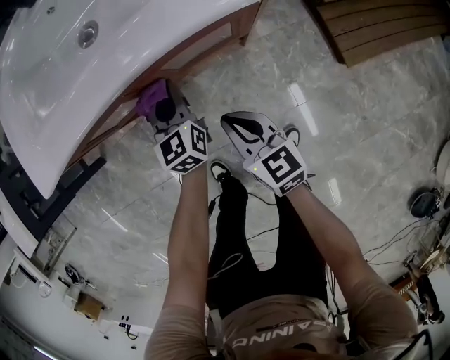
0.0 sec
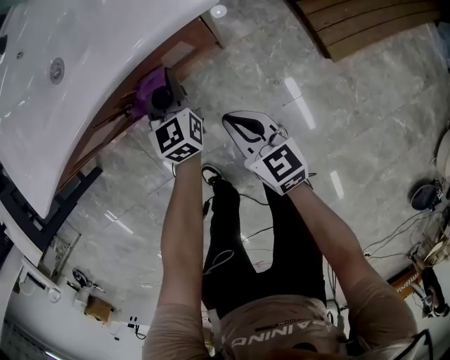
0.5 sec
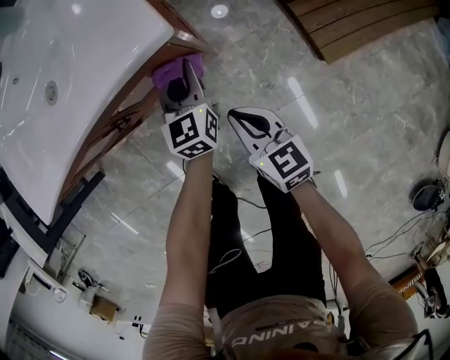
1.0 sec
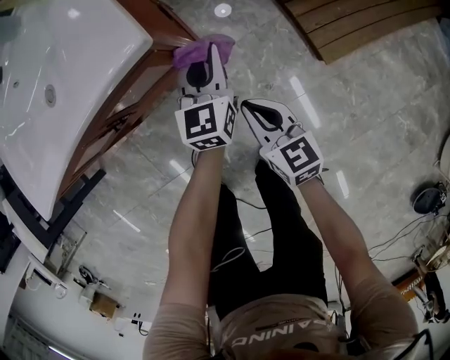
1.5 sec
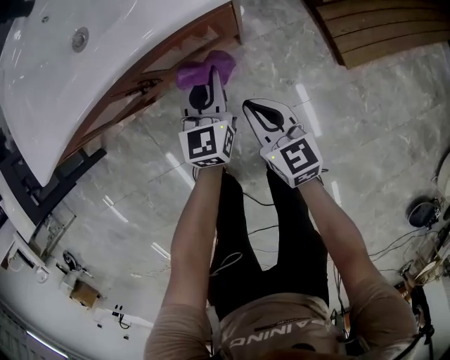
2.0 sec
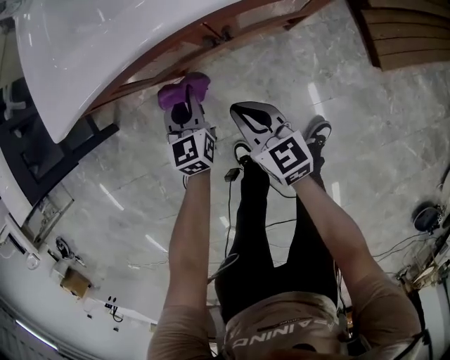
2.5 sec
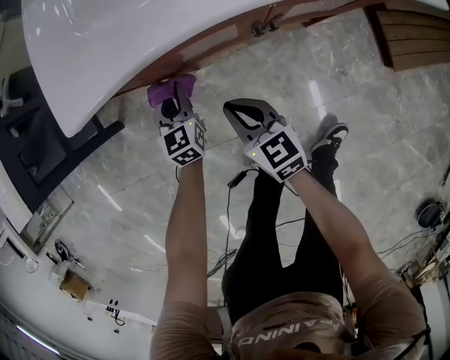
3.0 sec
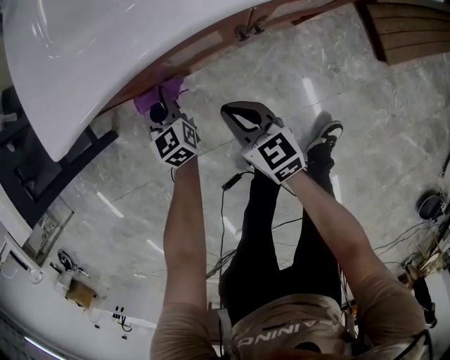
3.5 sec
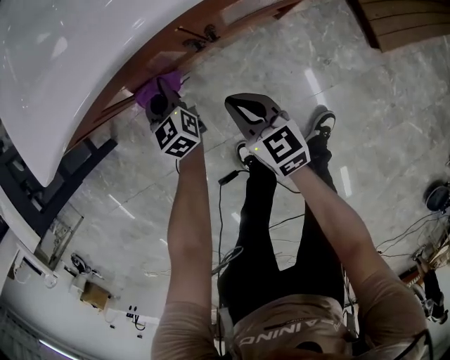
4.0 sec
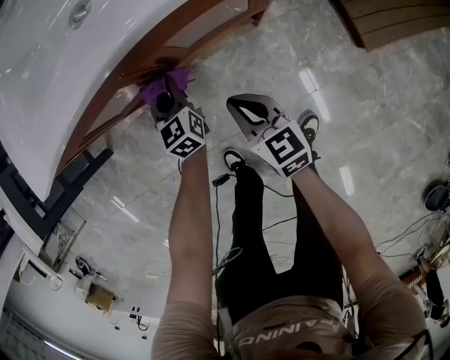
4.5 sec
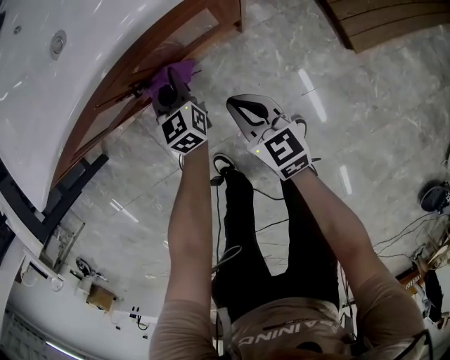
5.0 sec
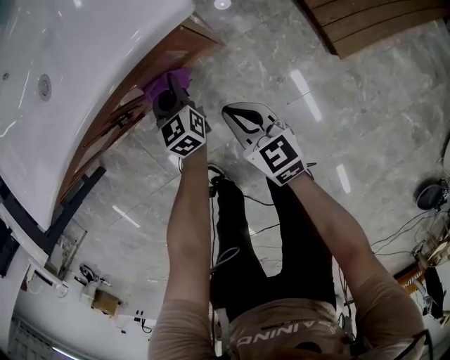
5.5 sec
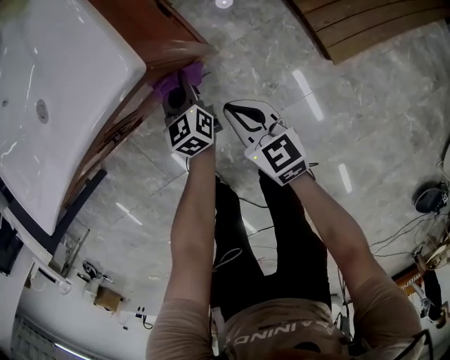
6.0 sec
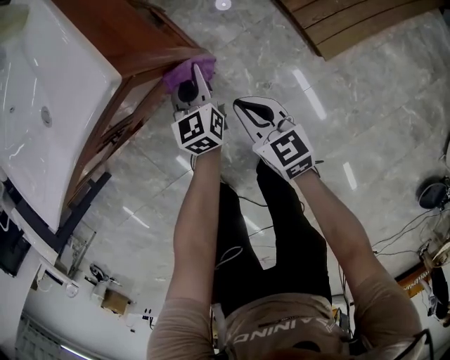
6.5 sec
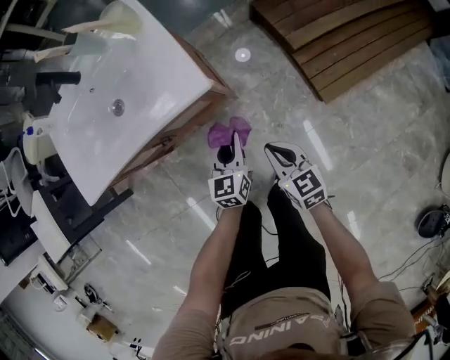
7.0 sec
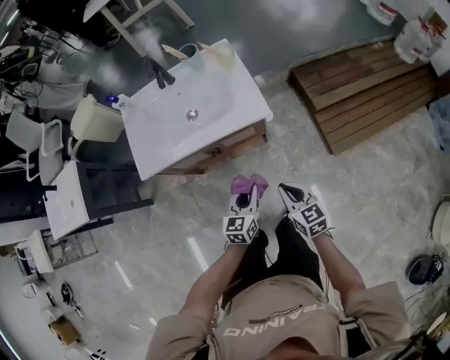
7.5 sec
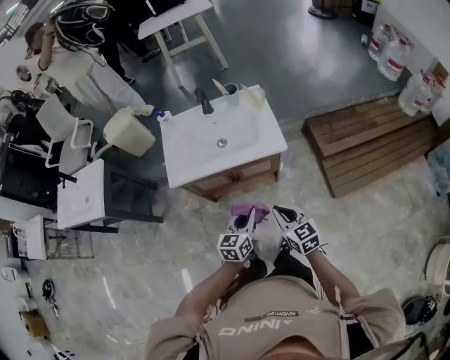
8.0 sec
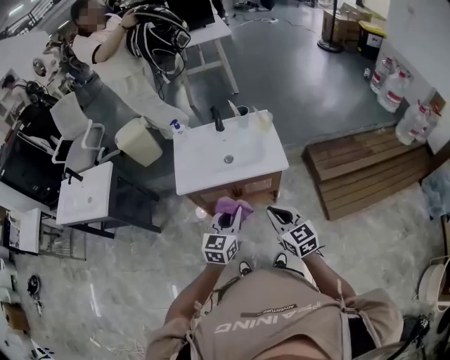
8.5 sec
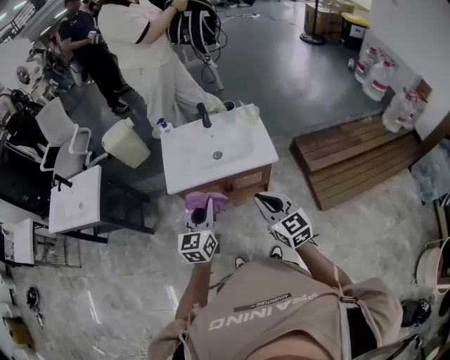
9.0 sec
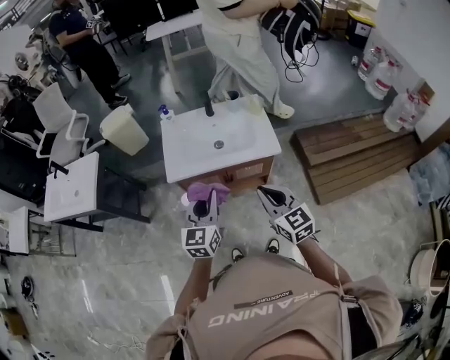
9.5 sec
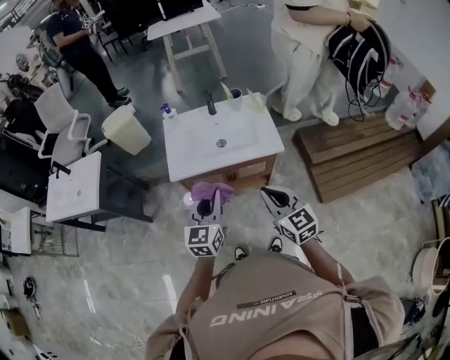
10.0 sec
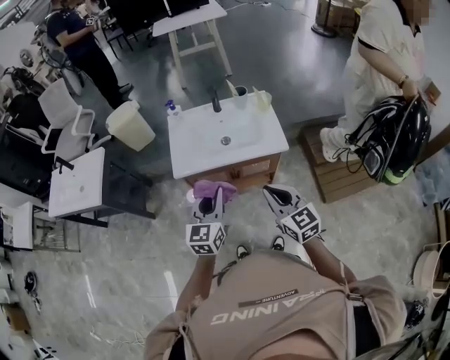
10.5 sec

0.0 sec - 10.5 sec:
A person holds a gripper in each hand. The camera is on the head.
0.0 sec - 2.0 sec: Both grippers move to the right, approximately 10 cm.
2.0 sec - 4.0 sec: Both grippers move to the left, approximately 30 cm. The left gripper turns by some 30 degrees.
4.0 sec - 6.5 sec: Both grippers move to the right, roughly 40 cm. The left gripper turns by about 20 degrees.
6.5 sec - 8.5 sec: The left gripper travels upward, to the left and backward by some 70 cm; the right gripper goes approximately 50 cm upward, and swivels about 30 degrees.
8.5 sec - 10.5 sec: The right gripper moves some 5 cm; the left gripper travels to the left by roughly 10 cm.

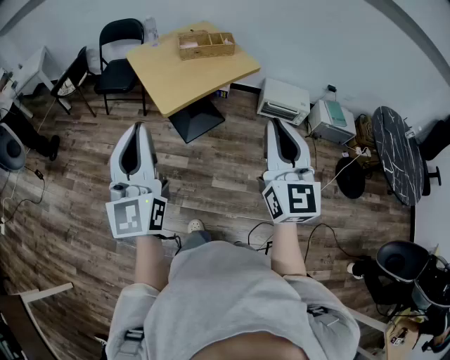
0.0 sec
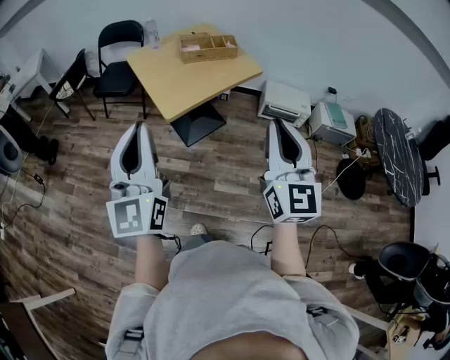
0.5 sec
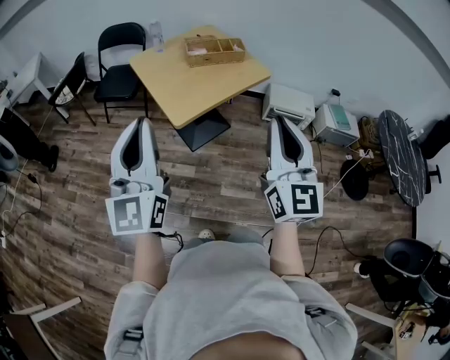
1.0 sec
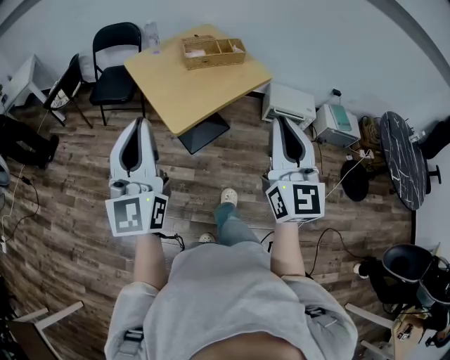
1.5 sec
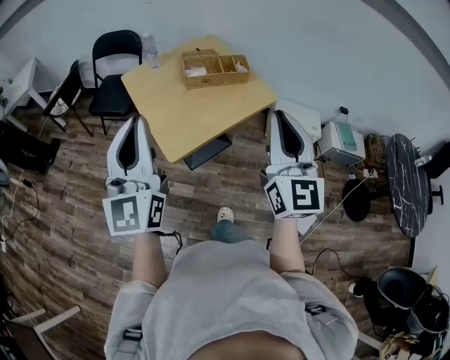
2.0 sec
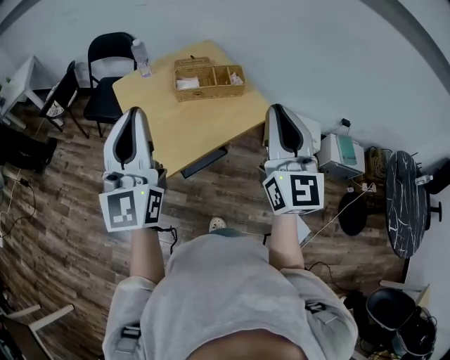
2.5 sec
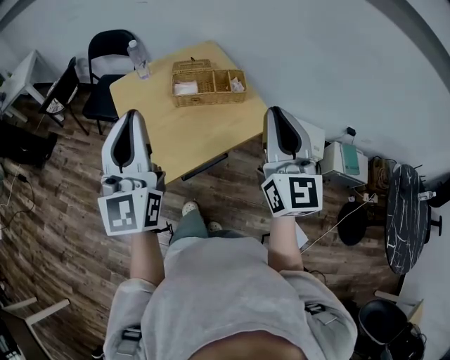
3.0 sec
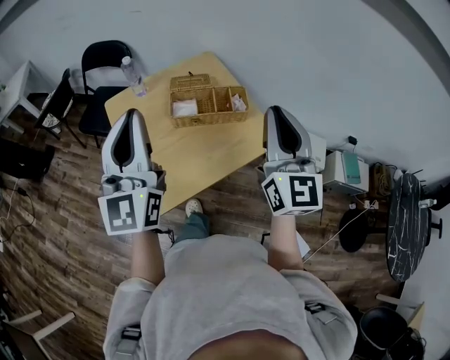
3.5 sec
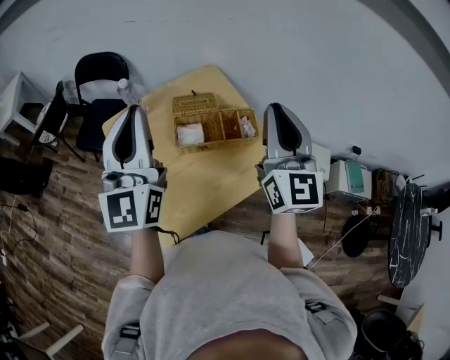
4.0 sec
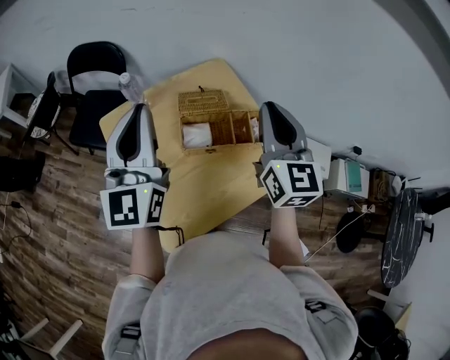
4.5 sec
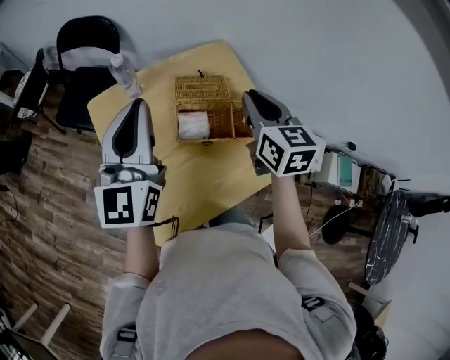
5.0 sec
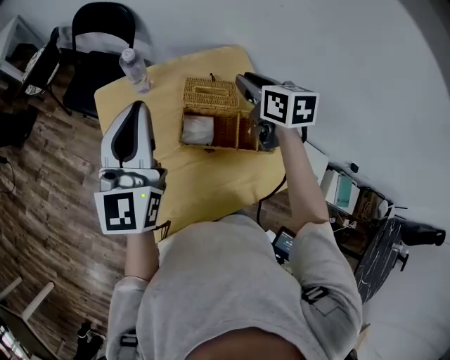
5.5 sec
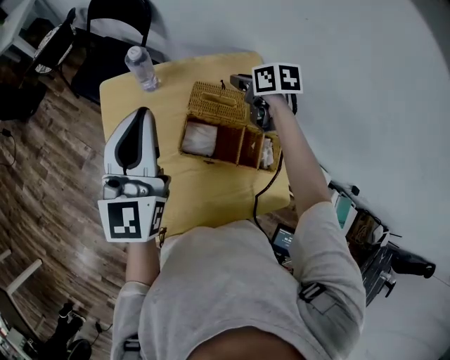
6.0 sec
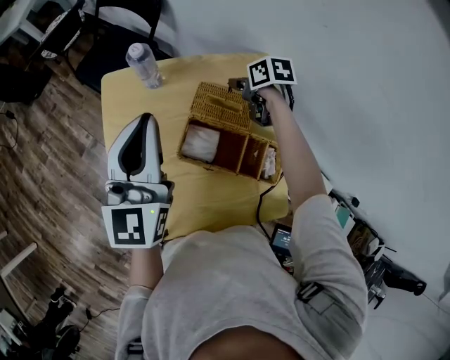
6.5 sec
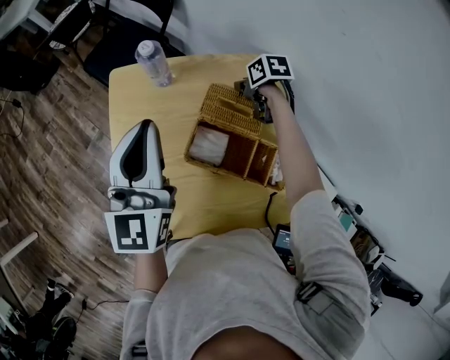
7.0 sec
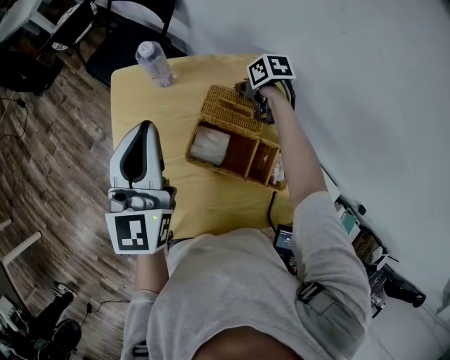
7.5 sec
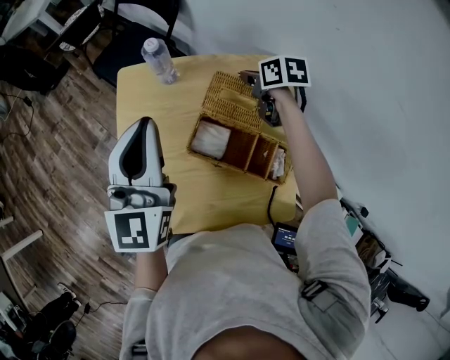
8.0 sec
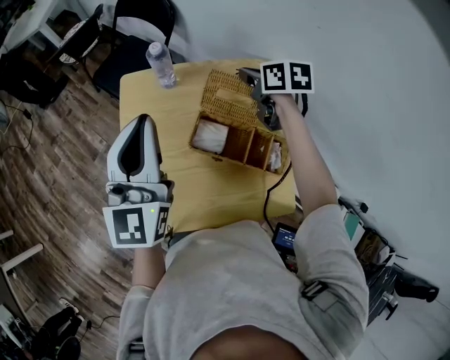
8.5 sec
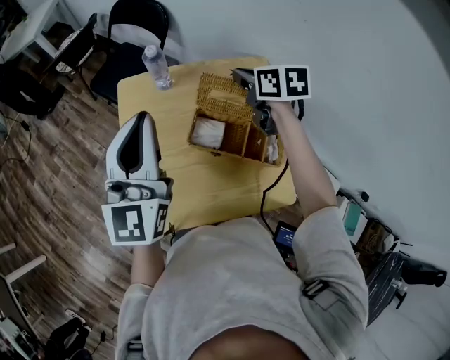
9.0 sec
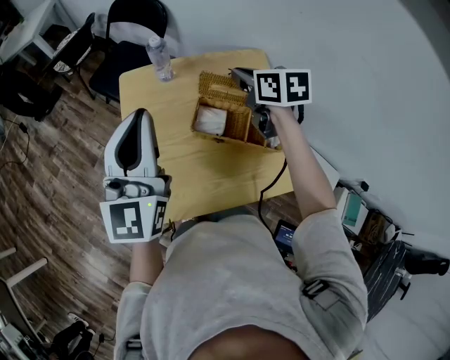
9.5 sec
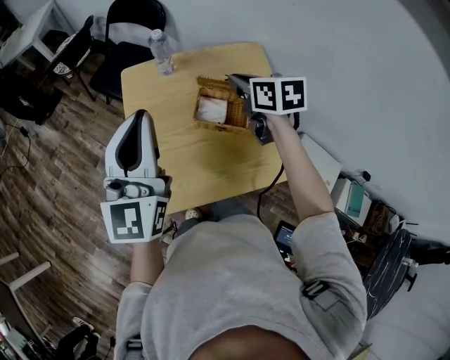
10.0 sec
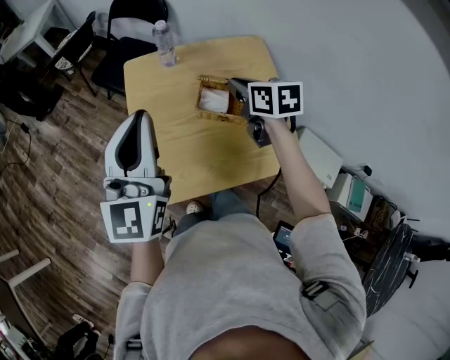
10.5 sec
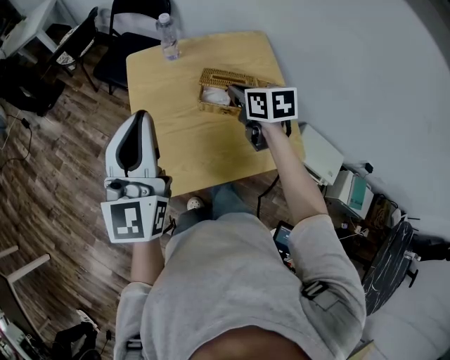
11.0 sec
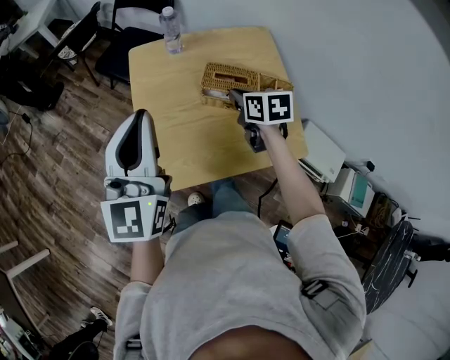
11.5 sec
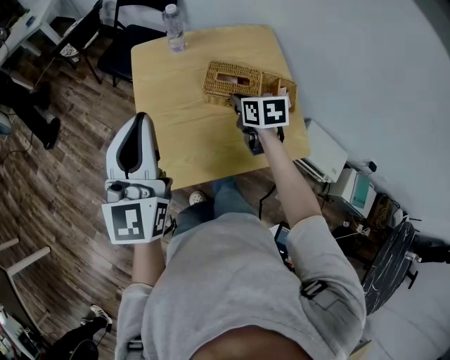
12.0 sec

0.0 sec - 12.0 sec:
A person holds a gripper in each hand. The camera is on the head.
0.0 sec - 2.0 sec: The two grippers go roughly 25 cm forward.
2.0 sec - 4.0 sec: Both grippers move forward, roughly 35 cm.
4.0 sec - 6.0 sec: The left gripper changes place by some 15 cm, while the right gripper changes place by some 50 cm, and tips its fingers downward by some 60 degrees.
6.0 sec - 8.0 sec: The right gripper reaches some 10 cm downward, then returns.
8.0 sec - 10.0 sec: The left gripper is displaced backward, to the left and upward by about 15 cm. Meanwhile the right gripper travels backward, upward and to the left by about 25 cm, and changes its angle by about 20 degrees.
10.0 sec - 12.0 sec: The right gripper heads downward and backward, covering some 15 cm. The left gripper travels backward by approximately 5 cm.

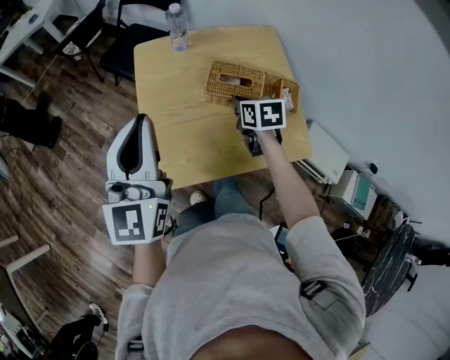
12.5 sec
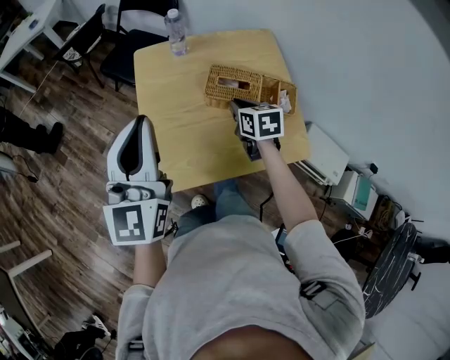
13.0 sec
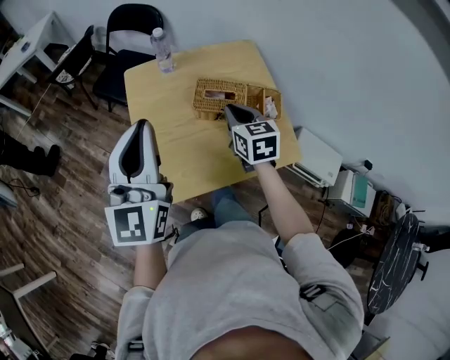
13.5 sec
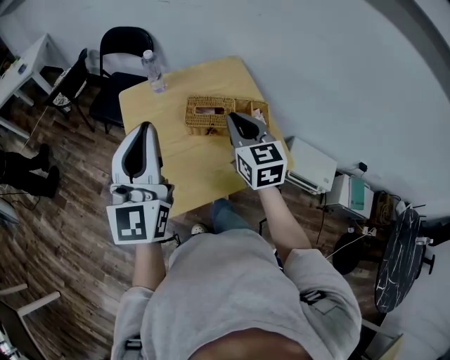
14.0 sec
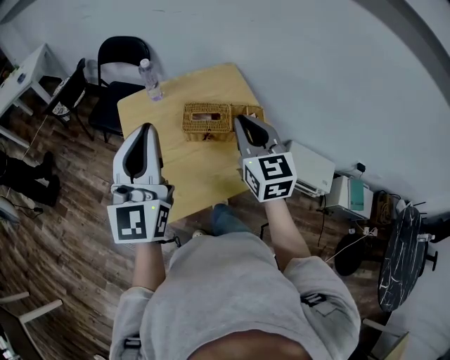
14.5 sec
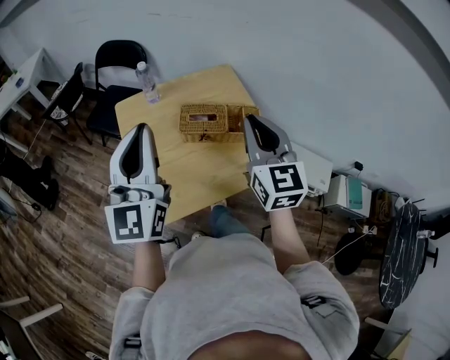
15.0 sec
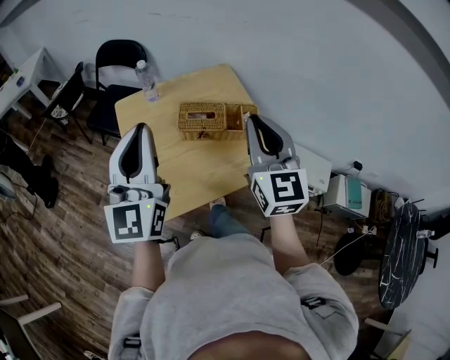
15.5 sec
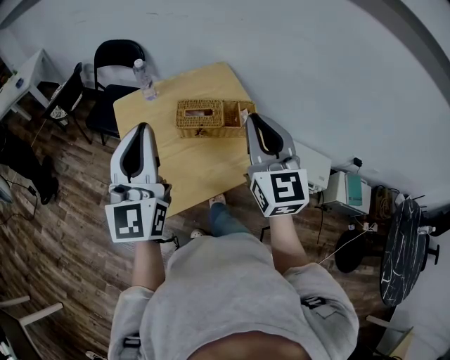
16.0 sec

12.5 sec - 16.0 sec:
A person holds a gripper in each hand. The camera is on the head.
12.5 sec - 14.5 sec: The left gripper moves upward and to the right, approximately 10 cm, while the right gripper travels upward by some 20 cm, and tips its fingers upward by roughly 40 degrees.
14.5 sec - 16.0 sec: The right gripper shifts roughly 10 cm backward and upward.

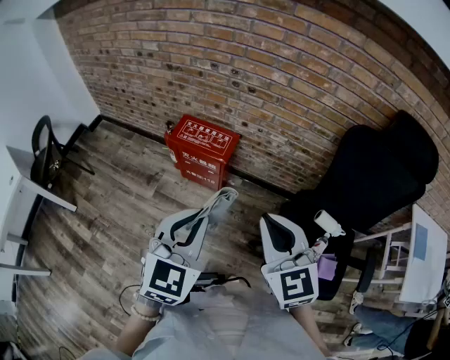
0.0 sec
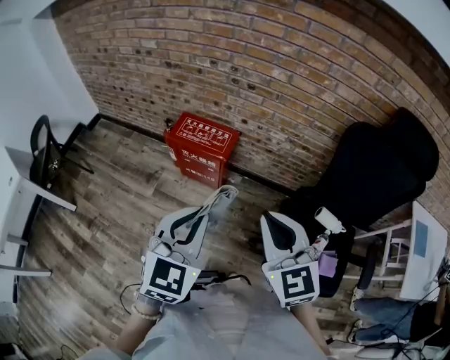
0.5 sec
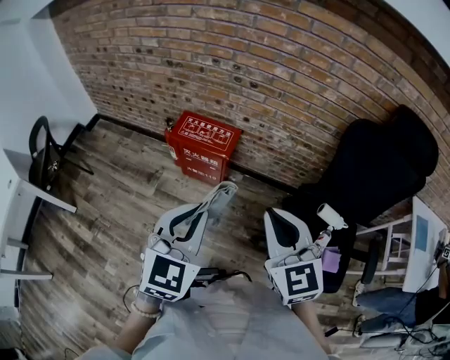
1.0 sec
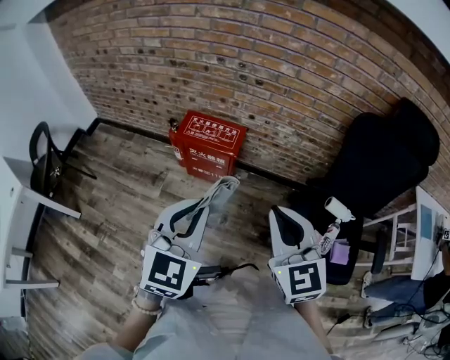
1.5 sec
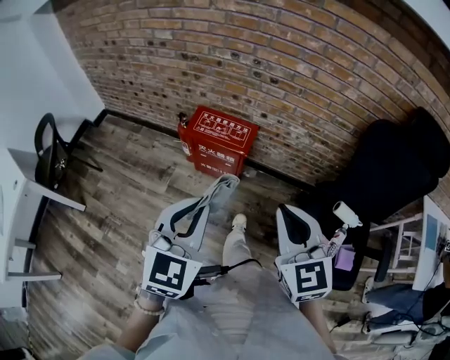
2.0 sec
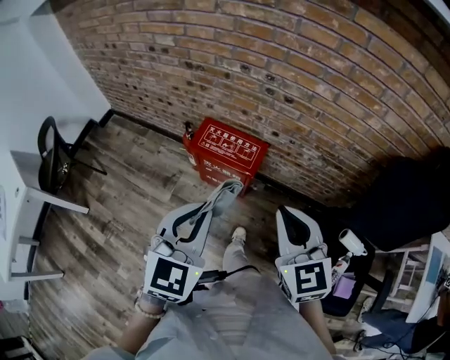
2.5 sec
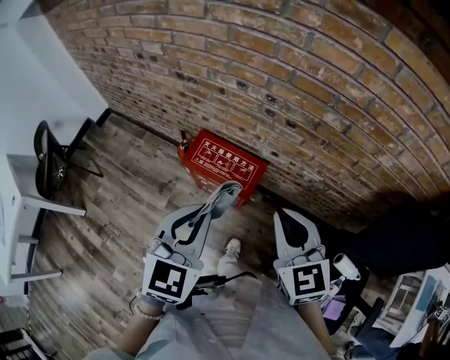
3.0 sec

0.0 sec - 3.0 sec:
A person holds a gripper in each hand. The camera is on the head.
0.0 sec - 1.5 sec: The two grippers go roughly 5 cm to the left.
1.5 sec - 3.0 sec: The grippers both shift forward by about 30 cm.
